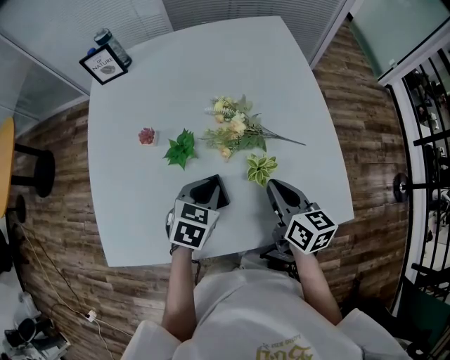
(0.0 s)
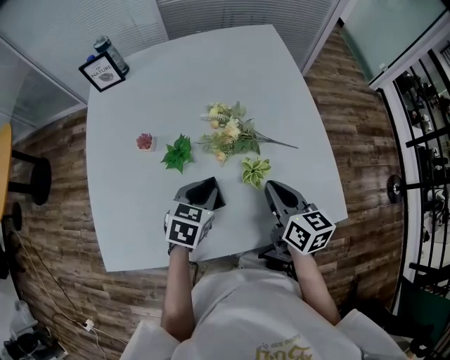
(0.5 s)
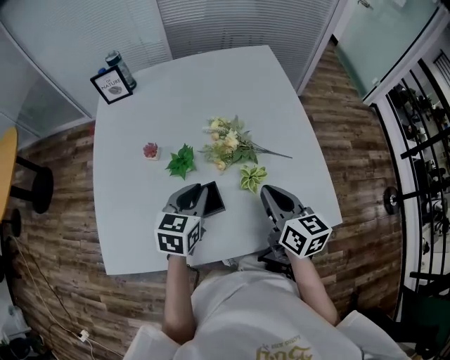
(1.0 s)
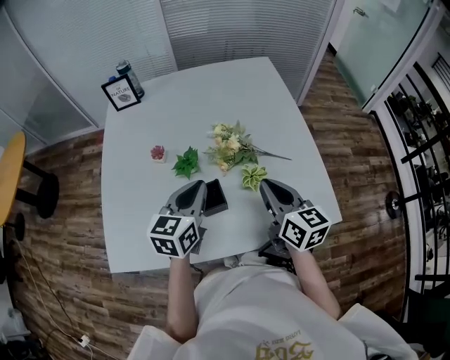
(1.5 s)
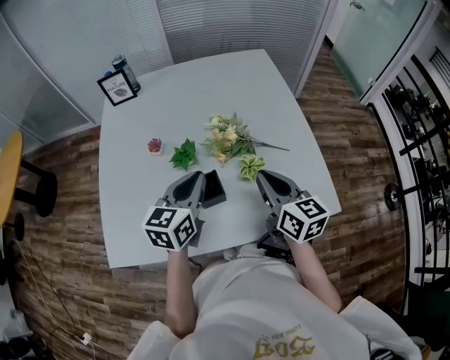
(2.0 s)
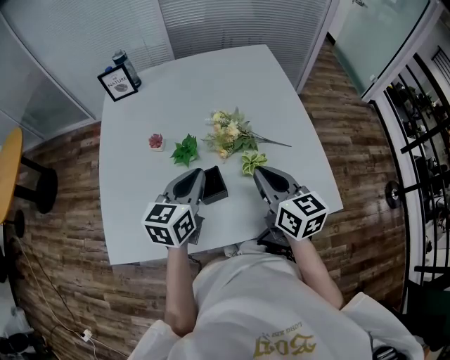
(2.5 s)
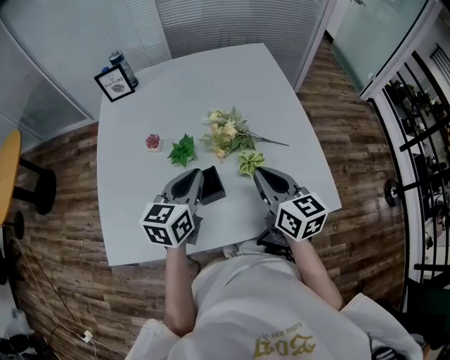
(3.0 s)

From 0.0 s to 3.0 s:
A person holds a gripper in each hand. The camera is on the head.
From 0.0 s to 1.5 s: Both grippers move upward, some 10 cm. The left gripper points its fingers roughly 30 degrees further upward.
From 1.5 s to 3.0 s: The grippers move only a little.

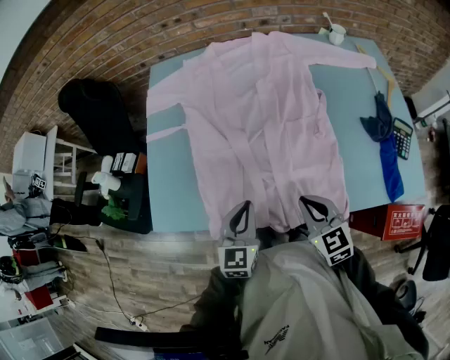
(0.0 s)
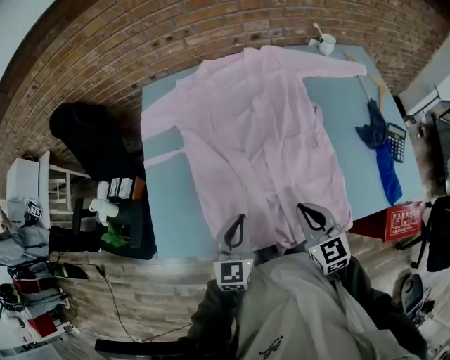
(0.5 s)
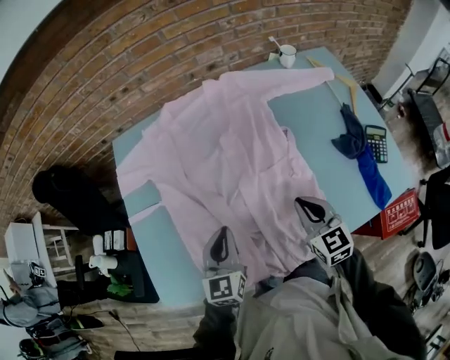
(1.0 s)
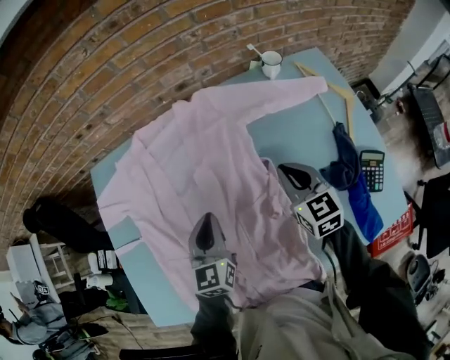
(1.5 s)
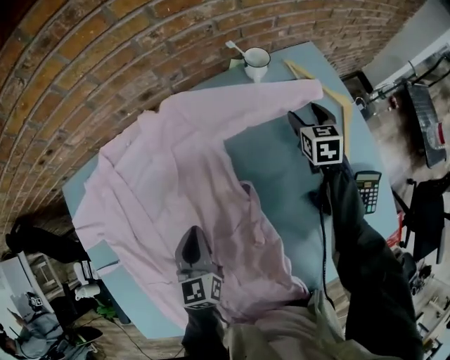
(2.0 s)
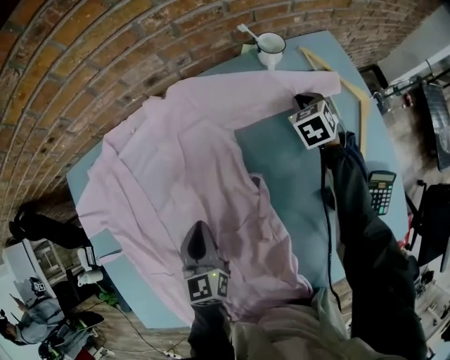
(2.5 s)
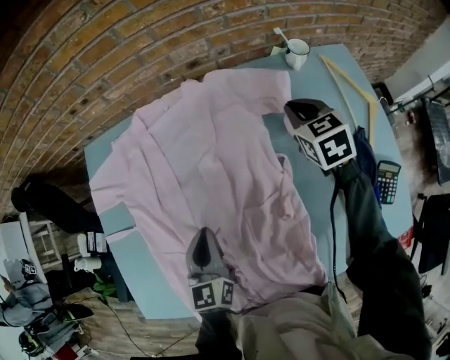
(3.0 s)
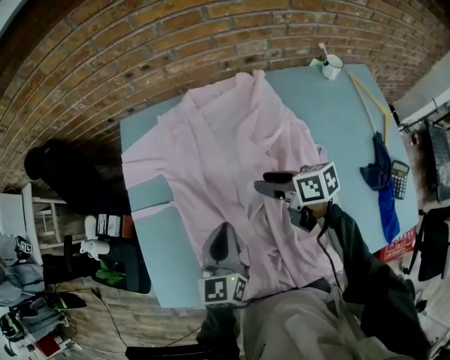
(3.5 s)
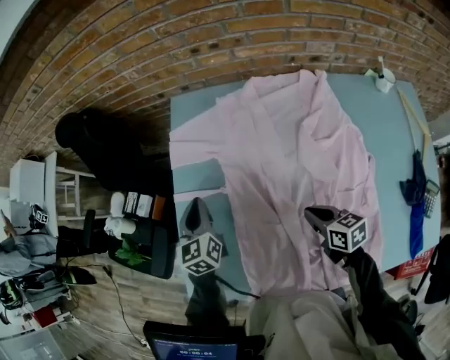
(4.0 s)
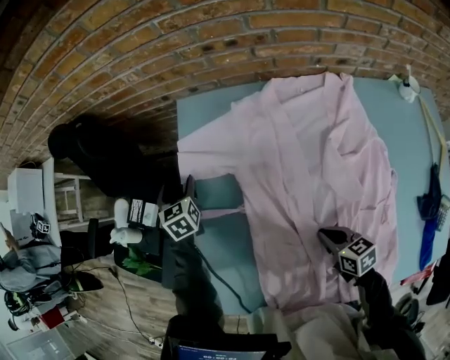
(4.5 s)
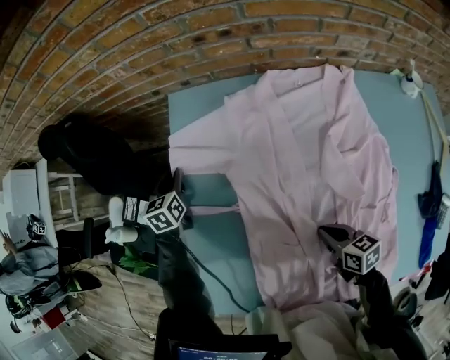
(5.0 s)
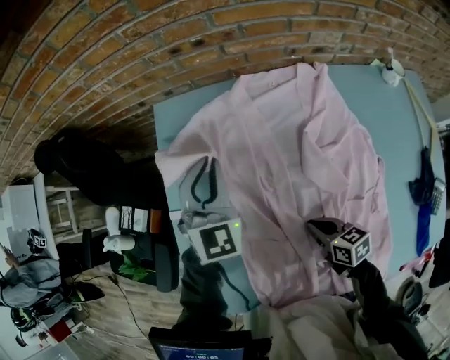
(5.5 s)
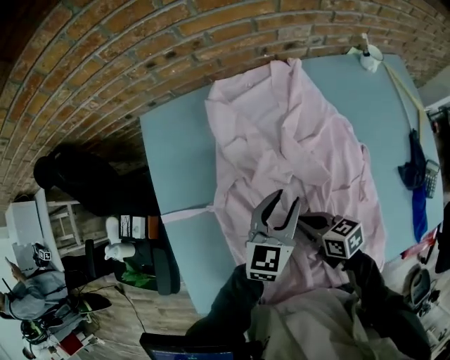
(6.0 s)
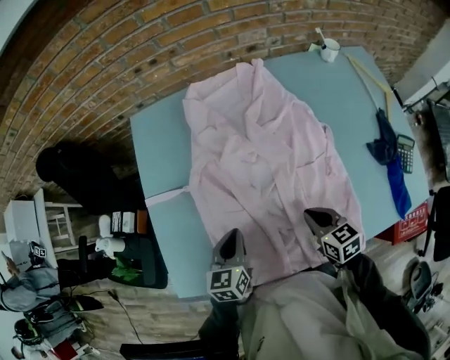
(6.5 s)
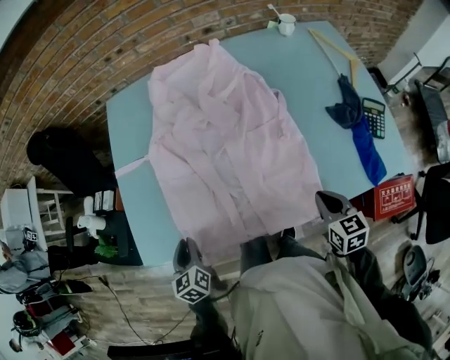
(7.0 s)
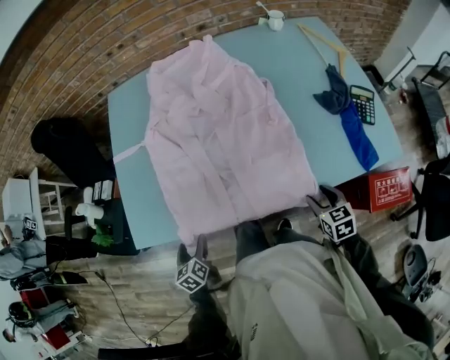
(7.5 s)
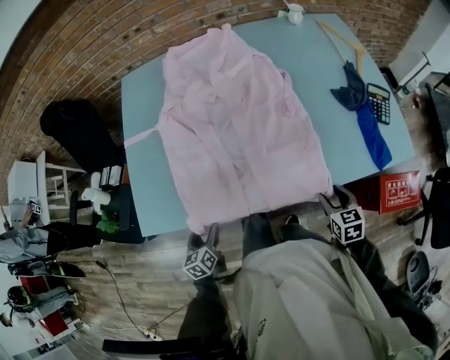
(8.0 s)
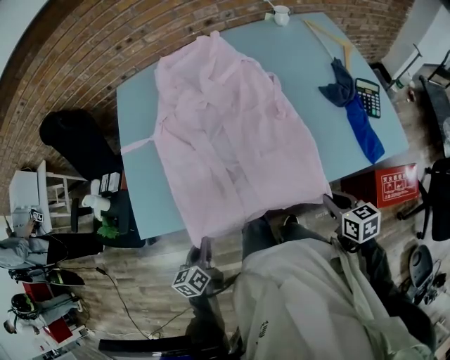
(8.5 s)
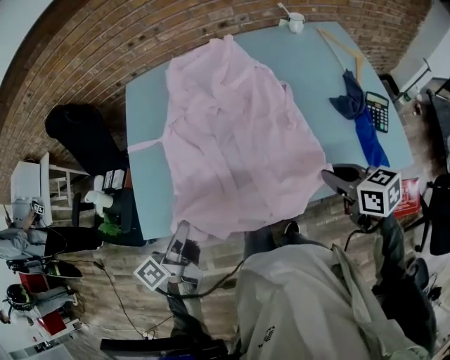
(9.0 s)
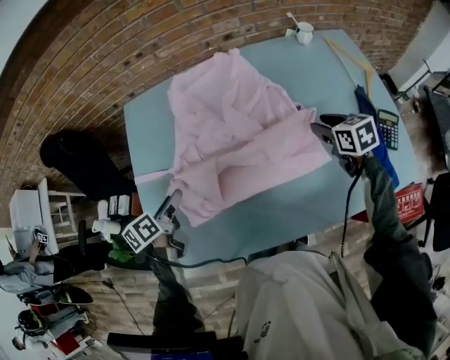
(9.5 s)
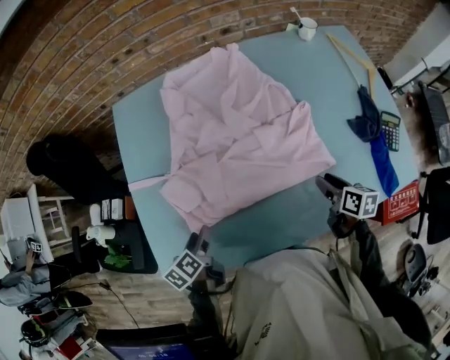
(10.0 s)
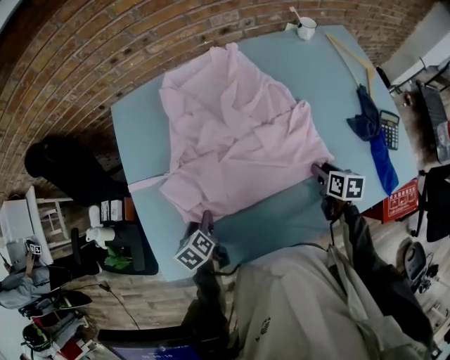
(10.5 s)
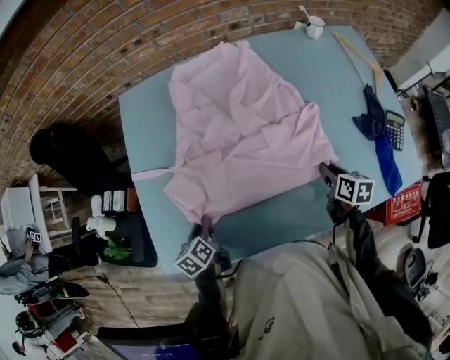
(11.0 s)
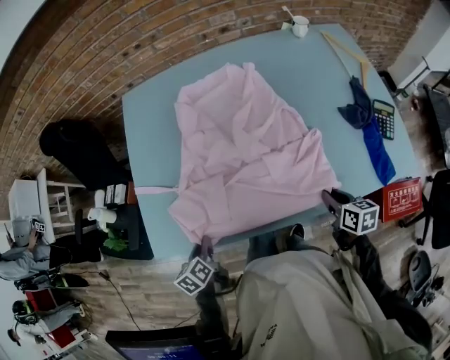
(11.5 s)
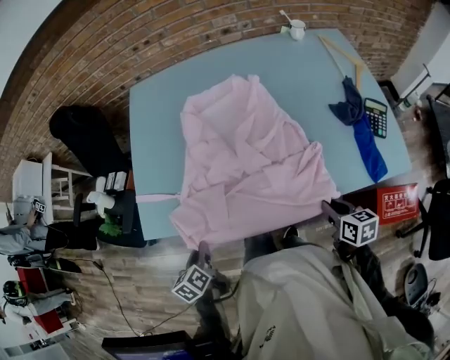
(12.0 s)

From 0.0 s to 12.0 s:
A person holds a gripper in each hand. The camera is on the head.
From 0.0 s to 2.0 s: The right gripper travels forward and to the right by about 60 cm, rotates about 40 degrees, and opens up. The left gripper travels forward by roughly 30 cm.
From 2.0 s to 4.0 s: The pair of grippers is taken roughly 50 cm. The left gripper rotates about 30 degrees. The right gripper rotates approximately 50 degrees, and closes up.
From 4.0 s to 6.0 s: The left gripper moves up and down over approximately 20 cm, changing direction 2 times, turns by some 40 degrees, and opens up.
From 6.0 s to 8.0 s: The right gripper is displaced backward and to the right by approximately 40 cm, changes its angle by some 40 degrees, and opens. The left gripper goes approximately 40 cm backward, to the left and downward, changes its angle by about 40 degrees, and opens.
From 8.0 s to 10.0 s: The left gripper swings forward and backward, about 30 cm each way, with 2 reversals, swivels roughly 20 degrees, and closes, then reopens; the right gripper is displaced forward by approximately 20 cm, rotates some 30 degrees, and closes, then reopens.
From 10.0 s to 12.0 s: Both grippers travel together backward, some 20 cm. The right gripper closes. The left gripper closes.

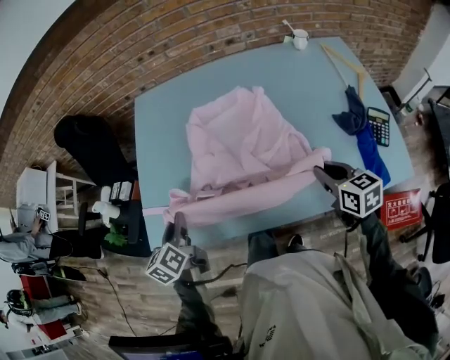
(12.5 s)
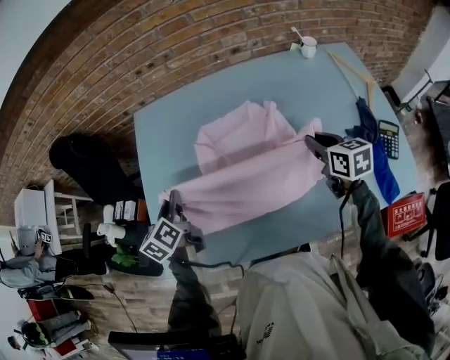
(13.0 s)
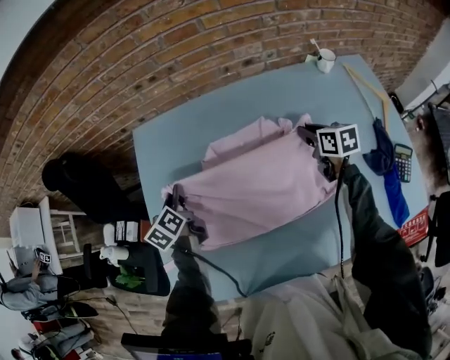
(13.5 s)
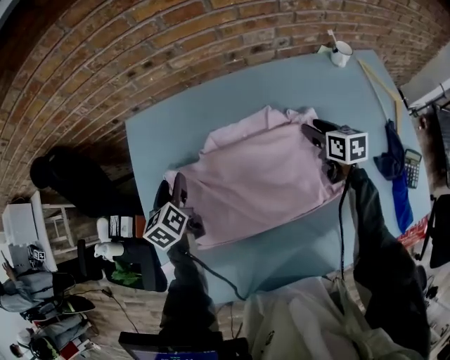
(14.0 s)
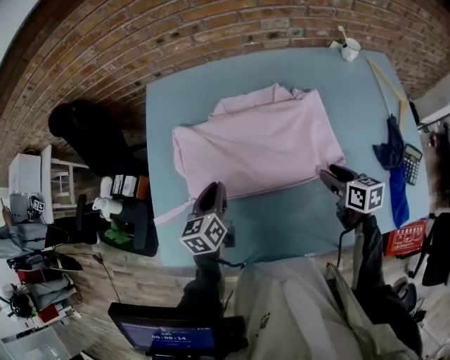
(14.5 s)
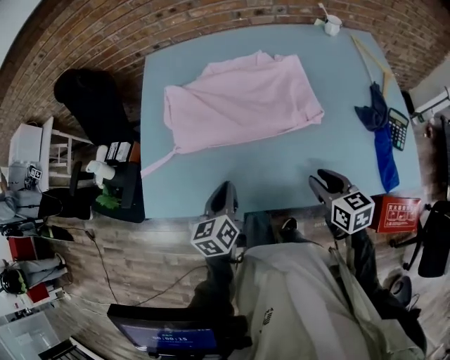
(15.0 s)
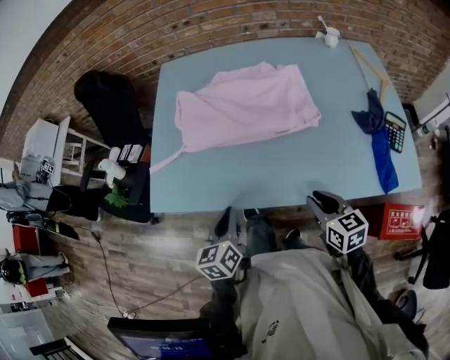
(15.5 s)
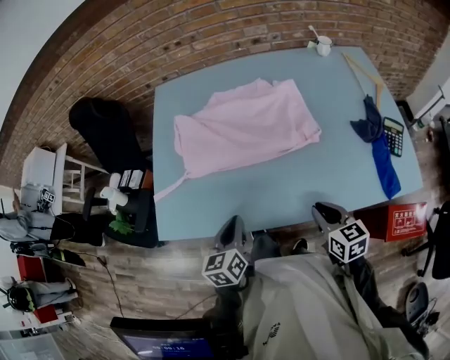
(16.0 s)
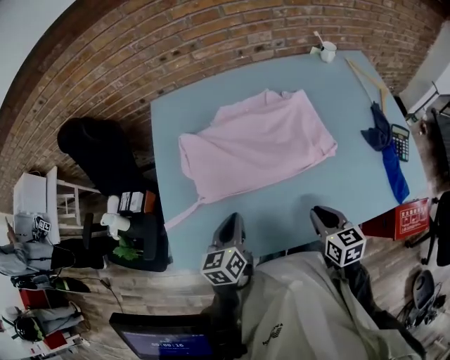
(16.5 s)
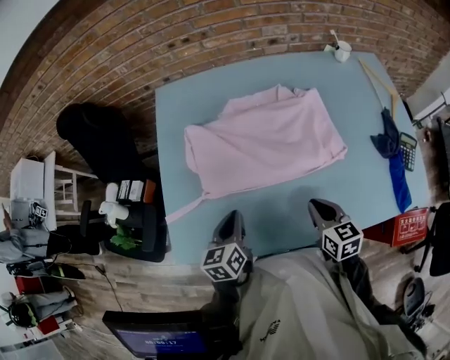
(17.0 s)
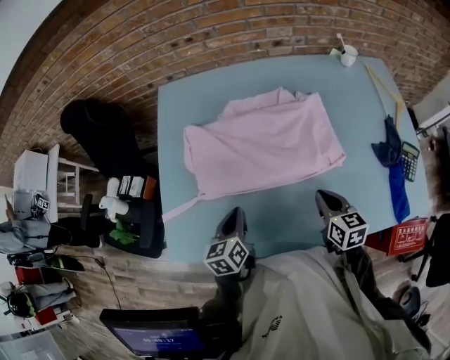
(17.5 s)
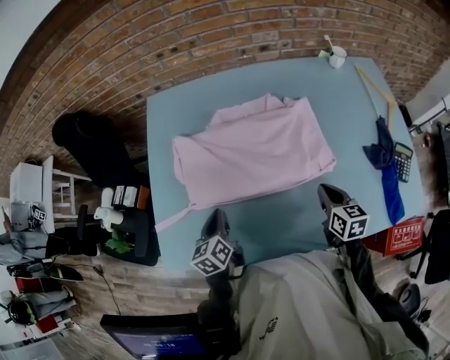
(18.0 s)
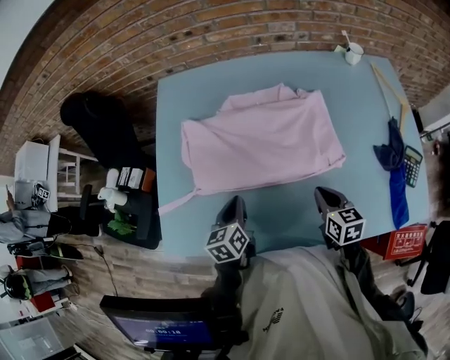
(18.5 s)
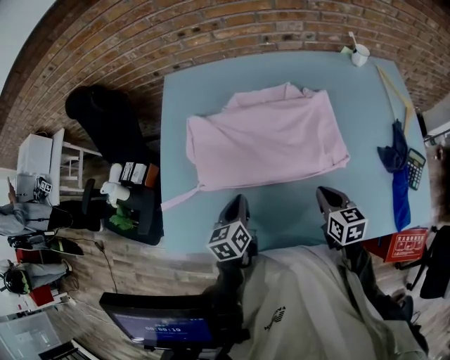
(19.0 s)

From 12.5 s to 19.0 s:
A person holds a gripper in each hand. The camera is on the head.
From 12.5 s to 14.5 s: The right gripper is displaced forward and downward by roughly 15 cm, and opens up, while the left gripper travels forward and to the right by about 20 cm, and opens and closes again.
From 14.5 s to 17.0 s: The left gripper travels backward by approximately 10 cm. The right gripper is displaced to the left and backward by about 15 cm, and closes.
From 17.0 s to 19.0 s: The left gripper ends up roughly 5 cm from where it was. The right gripper moves to the right, approximately 5 cm.

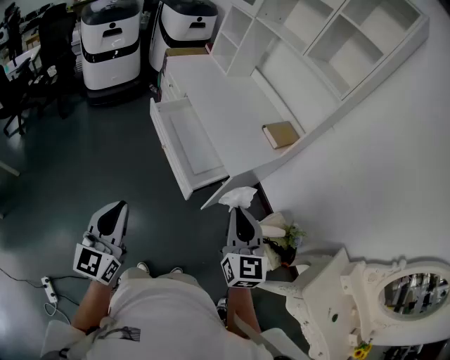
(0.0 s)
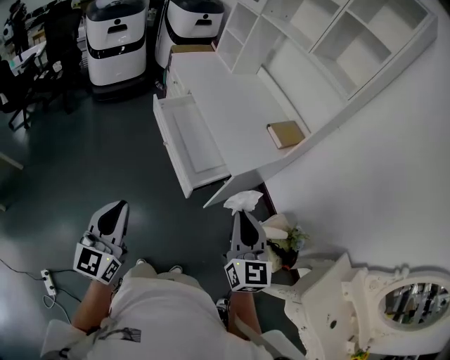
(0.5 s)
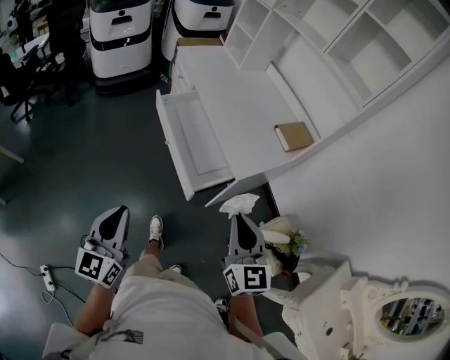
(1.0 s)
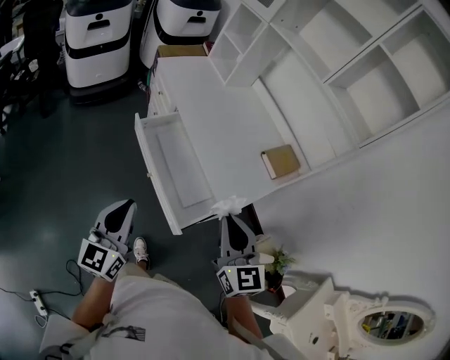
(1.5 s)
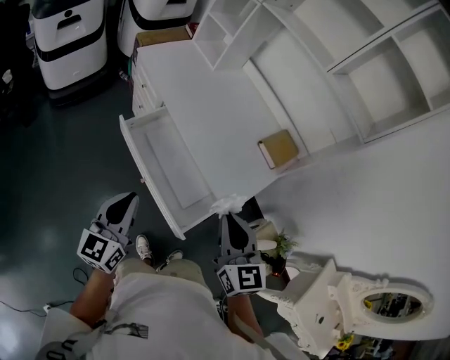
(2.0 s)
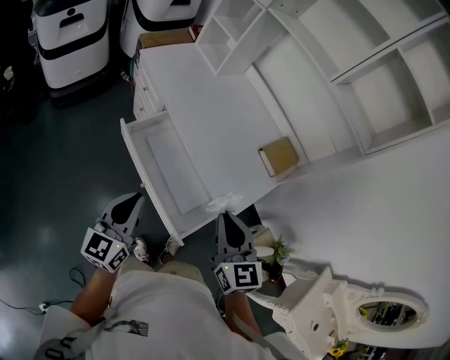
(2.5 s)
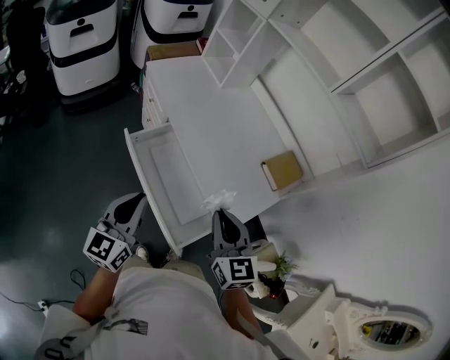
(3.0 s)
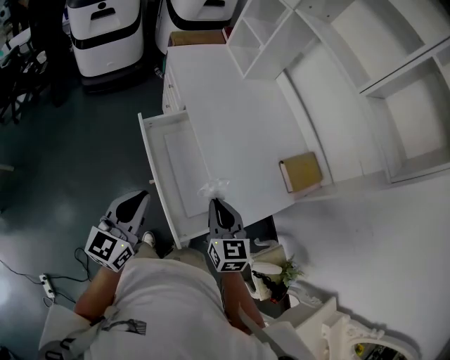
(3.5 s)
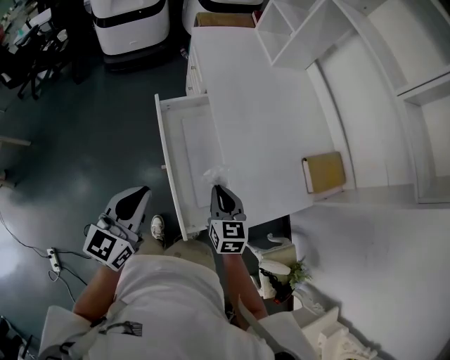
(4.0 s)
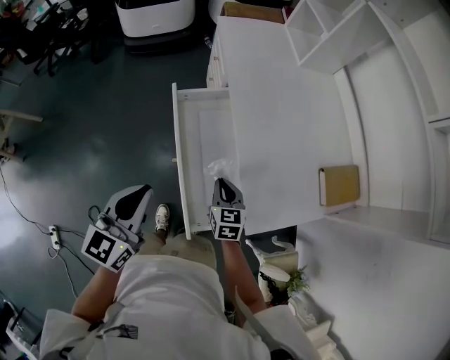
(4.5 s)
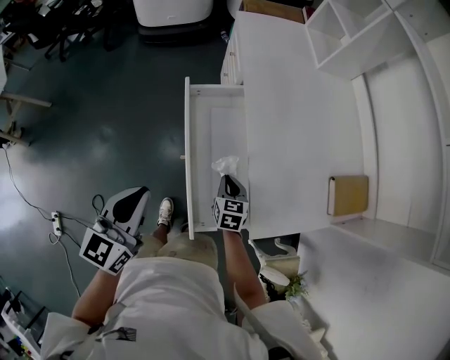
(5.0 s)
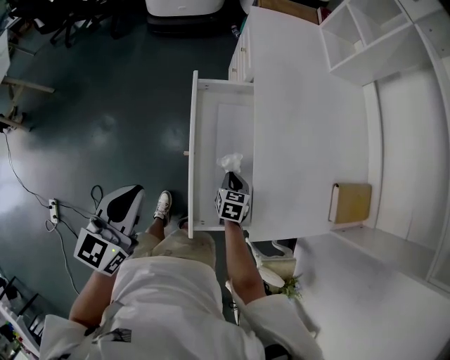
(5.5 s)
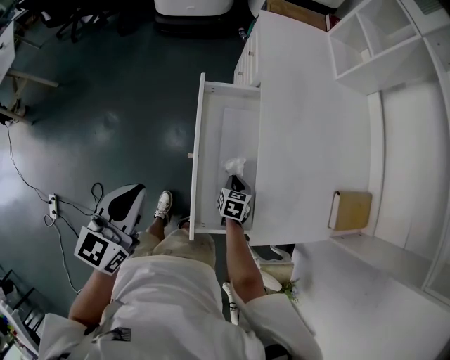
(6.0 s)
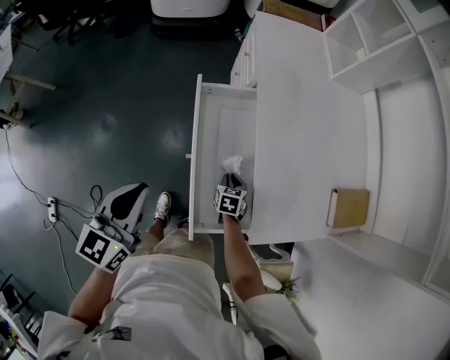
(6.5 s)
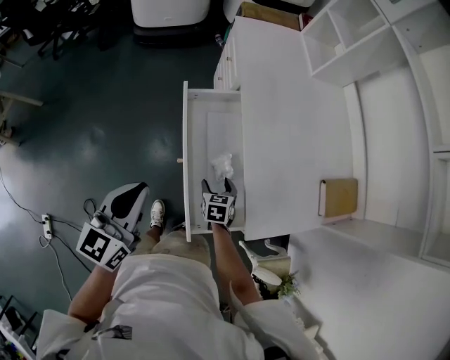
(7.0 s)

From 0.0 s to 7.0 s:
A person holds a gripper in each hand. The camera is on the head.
From 0.0 s to 2.0 s: Both grippers move forward, roughly 30 cm.
From 2.0 s to 3.5 s: The right gripper moves downward and forward, roughly 15 cm; the left gripper travels to the right by about 5 cm.
From 3.5 s to 5.0 s: The left gripper changes place by roughly 5 cm; the right gripper goes roughly 25 cm downward, and turns by approximately 20 degrees.
From 5.0 s to 7.0 s: The right gripper opens its fingers.
